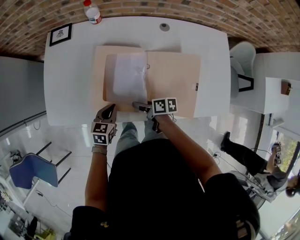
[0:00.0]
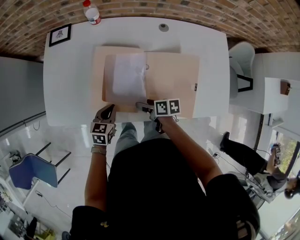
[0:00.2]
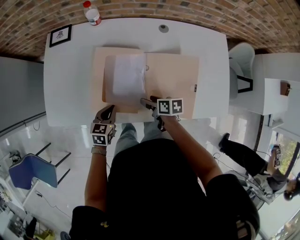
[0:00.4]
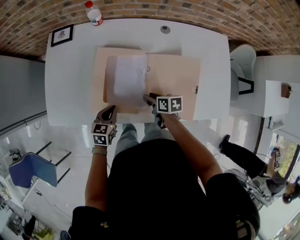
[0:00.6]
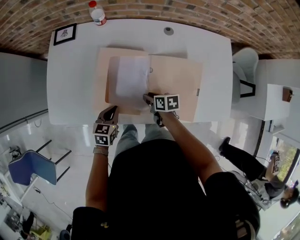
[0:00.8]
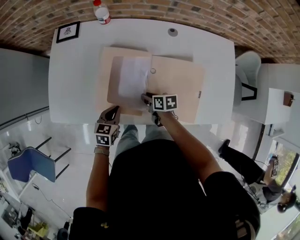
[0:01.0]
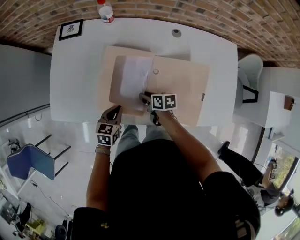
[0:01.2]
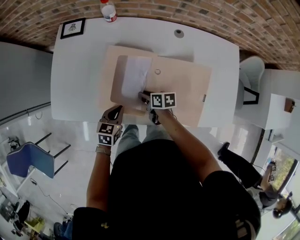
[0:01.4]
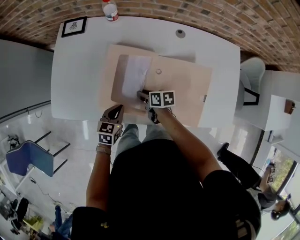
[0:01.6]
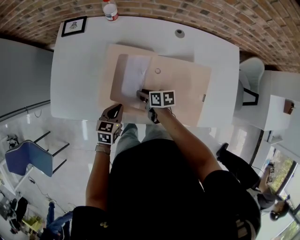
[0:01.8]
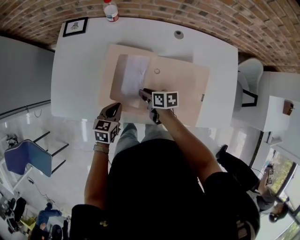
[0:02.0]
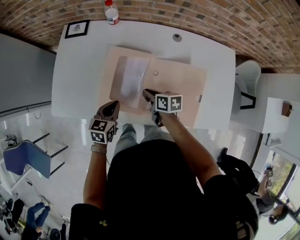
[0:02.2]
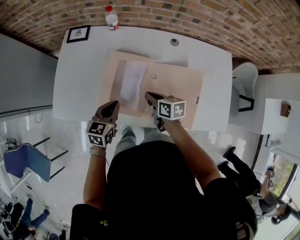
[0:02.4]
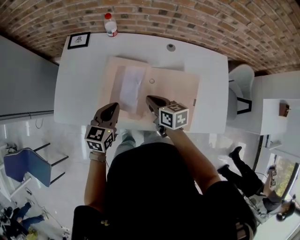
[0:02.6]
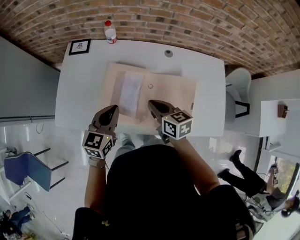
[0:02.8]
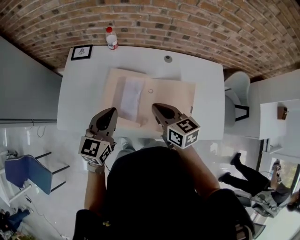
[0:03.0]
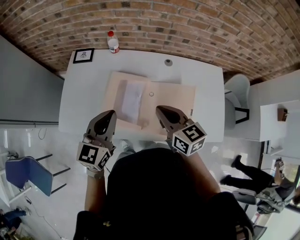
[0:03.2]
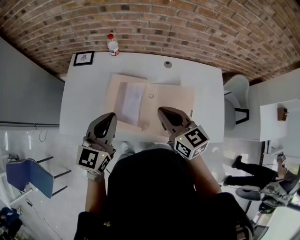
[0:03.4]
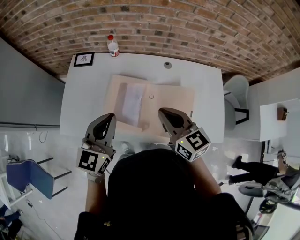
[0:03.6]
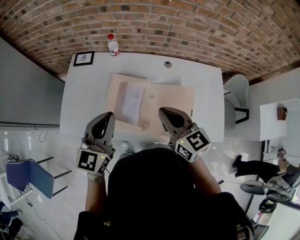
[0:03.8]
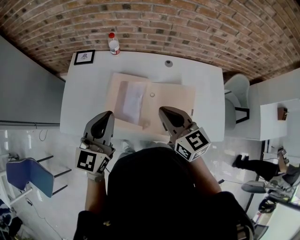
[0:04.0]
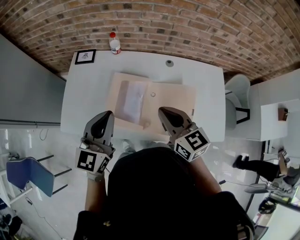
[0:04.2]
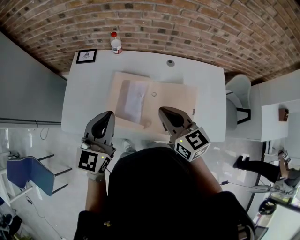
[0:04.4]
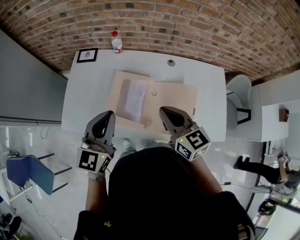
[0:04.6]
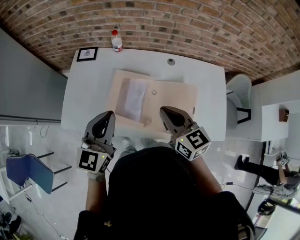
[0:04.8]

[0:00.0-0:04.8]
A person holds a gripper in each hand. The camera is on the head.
0:00.0 to 0:01.6: The right gripper goes approximately 10 cm forward, and closes its fingers.
0:01.6 to 0:03.2: The two grippers go approximately 30 cm upward. The left gripper points its fingers roughly 30 degrees further upward; the right gripper swivels about 50 degrees, and closes up.
0:03.2 to 0:04.8: The grippers move only a little.

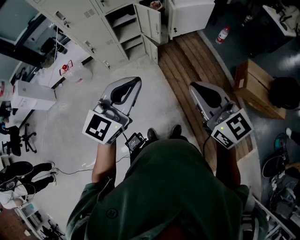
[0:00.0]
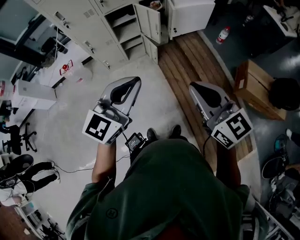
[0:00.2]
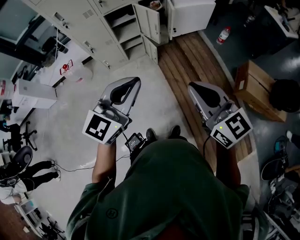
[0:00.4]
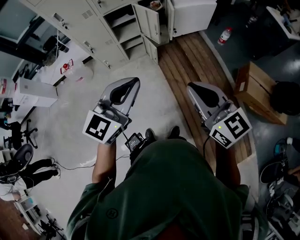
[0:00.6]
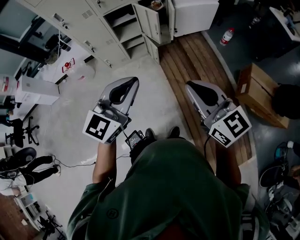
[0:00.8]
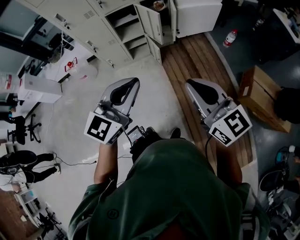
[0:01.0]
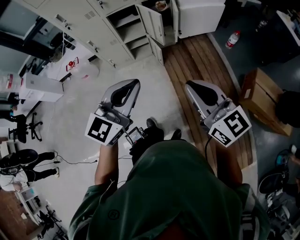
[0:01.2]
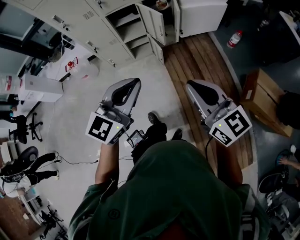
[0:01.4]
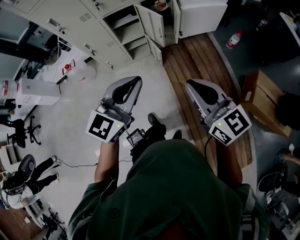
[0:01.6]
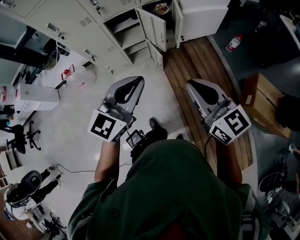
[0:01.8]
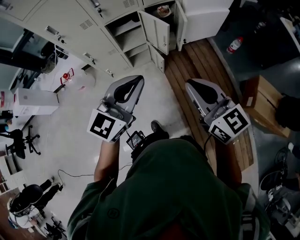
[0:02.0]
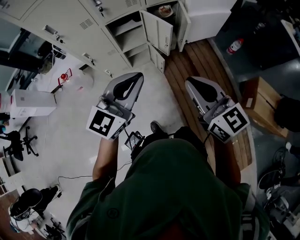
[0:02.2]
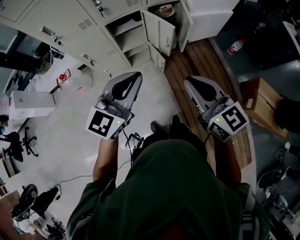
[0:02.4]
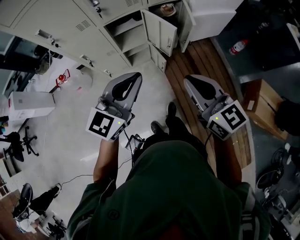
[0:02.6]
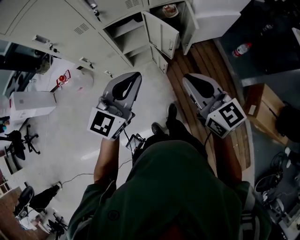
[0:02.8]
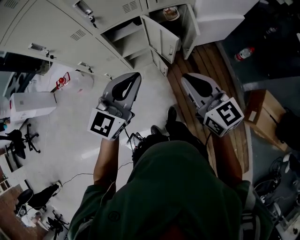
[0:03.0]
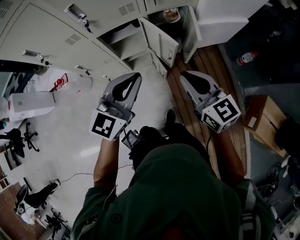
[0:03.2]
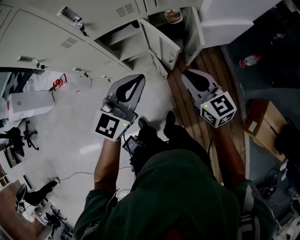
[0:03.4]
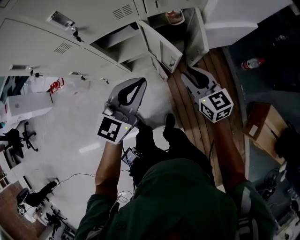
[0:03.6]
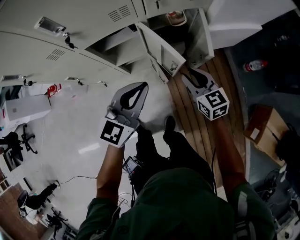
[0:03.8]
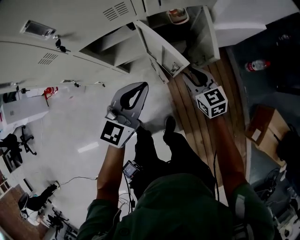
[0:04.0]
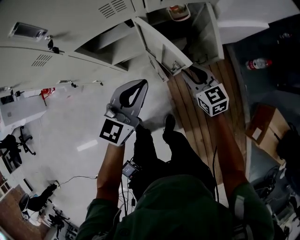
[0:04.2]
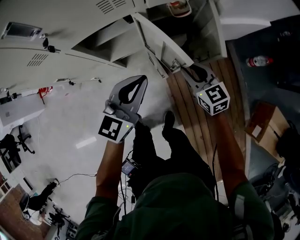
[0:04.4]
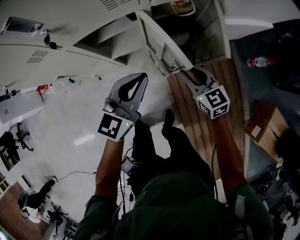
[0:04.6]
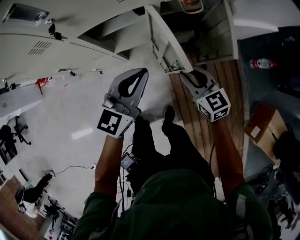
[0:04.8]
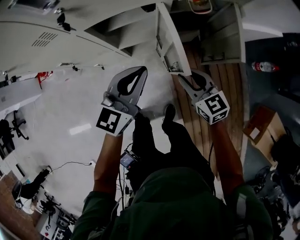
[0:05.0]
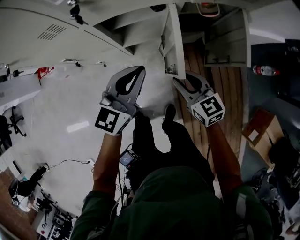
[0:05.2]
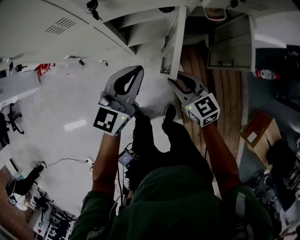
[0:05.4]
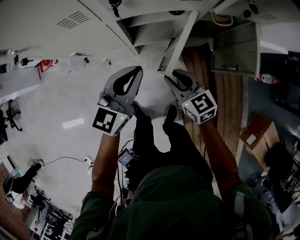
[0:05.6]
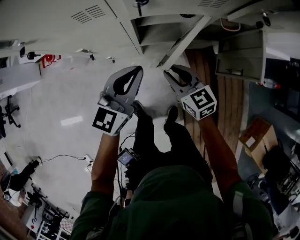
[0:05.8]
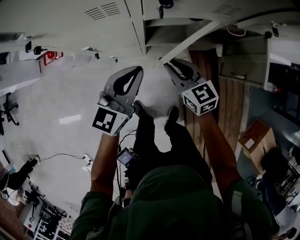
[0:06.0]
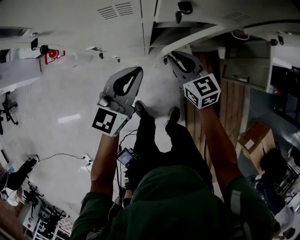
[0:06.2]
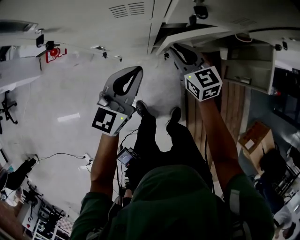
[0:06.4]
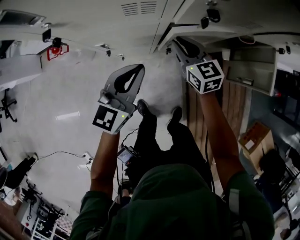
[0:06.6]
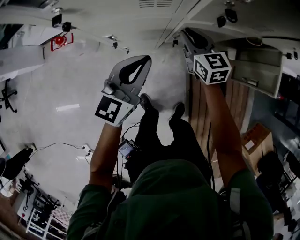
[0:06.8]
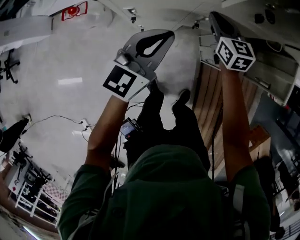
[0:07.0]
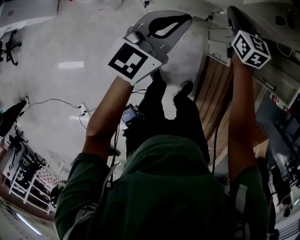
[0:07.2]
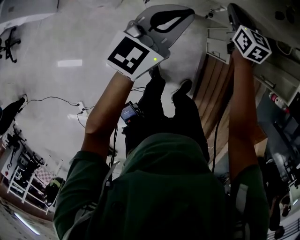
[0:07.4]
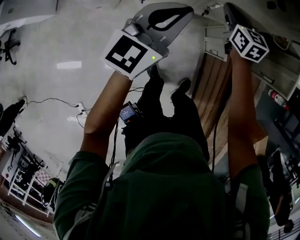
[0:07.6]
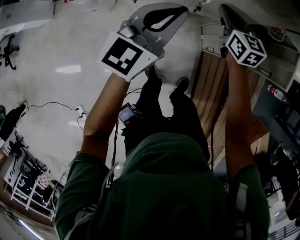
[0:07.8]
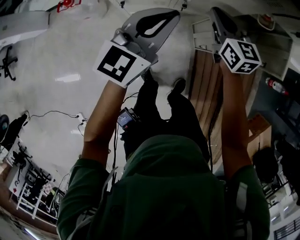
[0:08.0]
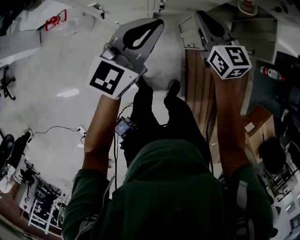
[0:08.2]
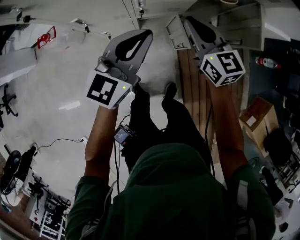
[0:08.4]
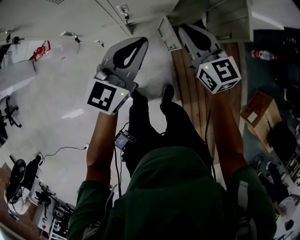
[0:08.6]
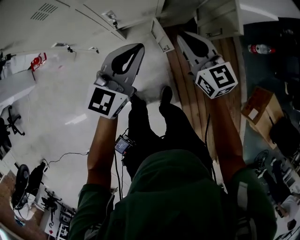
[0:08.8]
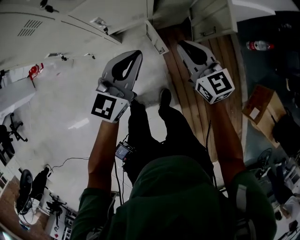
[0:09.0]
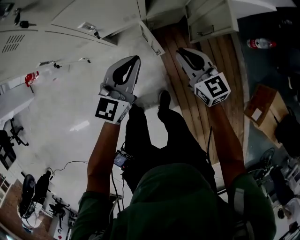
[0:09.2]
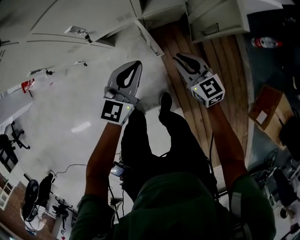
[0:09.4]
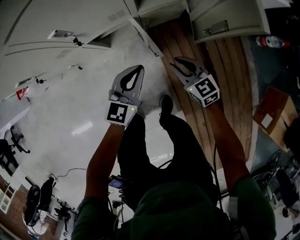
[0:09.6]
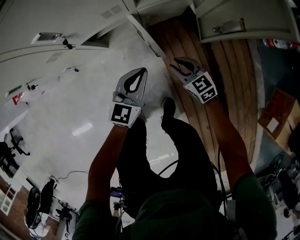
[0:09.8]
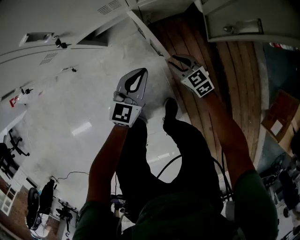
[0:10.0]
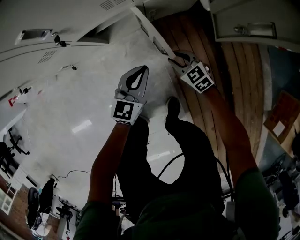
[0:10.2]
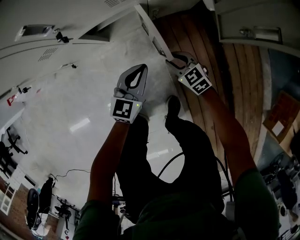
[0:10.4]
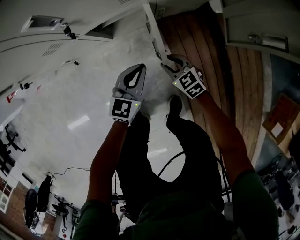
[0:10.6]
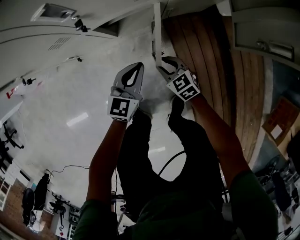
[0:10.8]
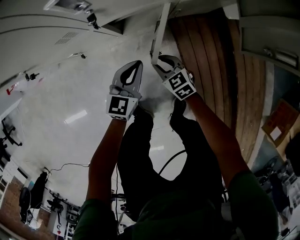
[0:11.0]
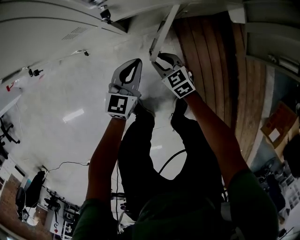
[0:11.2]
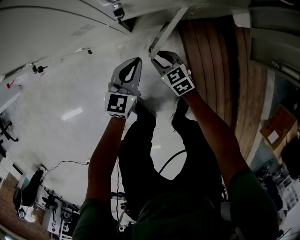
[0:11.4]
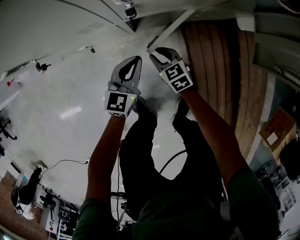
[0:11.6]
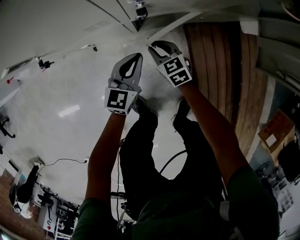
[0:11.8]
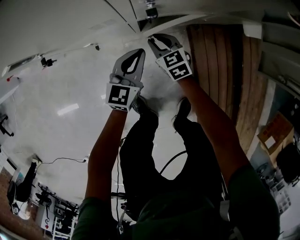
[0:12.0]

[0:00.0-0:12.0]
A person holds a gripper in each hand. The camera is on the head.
0:00.0 to 0:01.6: The left gripper goes about 15 cm forward and to the right, while the right gripper is displaced forward by some 15 cm.
0:01.6 to 0:03.0: Both grippers travel together forward, about 25 cm.
0:03.0 to 0:04.4: Both grippers move downward and forward, about 30 cm. The right gripper opens.
0:04.4 to 0:06.0: The two grippers go approximately 25 cm to the left.
0:06.0 to 0:07.6: The left gripper moves some 5 cm. The right gripper heads forward, covering about 10 cm.
0:07.6 to 0:09.0: The left gripper is displaced to the right by some 25 cm. The right gripper heads to the right and backward, covering approximately 30 cm.
0:09.0 to 0:10.4: The grippers both shift downward by approximately 40 cm. The right gripper turns by roughly 30 degrees.
0:10.4 to 0:12.0: The grippers both shift to the left and forward by some 25 cm.

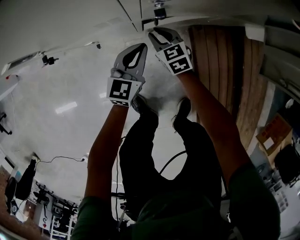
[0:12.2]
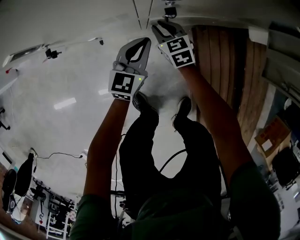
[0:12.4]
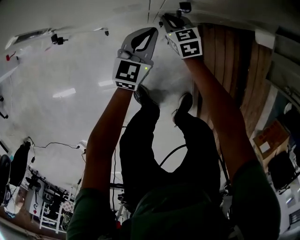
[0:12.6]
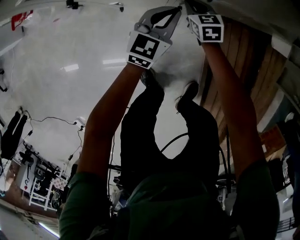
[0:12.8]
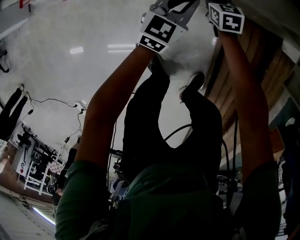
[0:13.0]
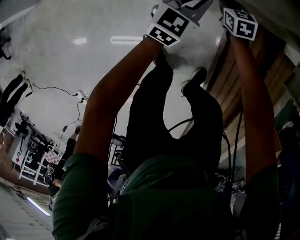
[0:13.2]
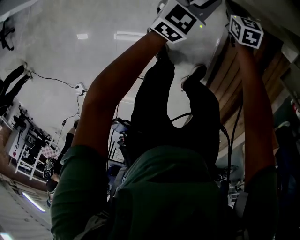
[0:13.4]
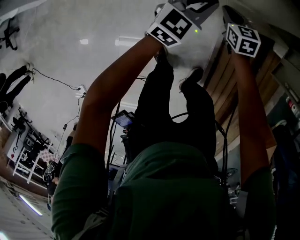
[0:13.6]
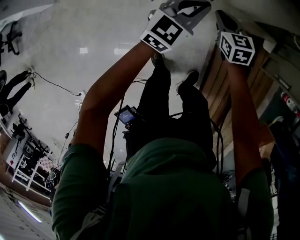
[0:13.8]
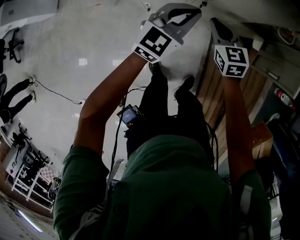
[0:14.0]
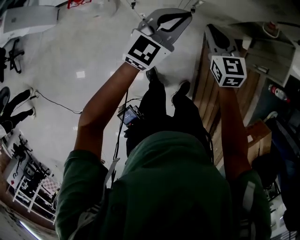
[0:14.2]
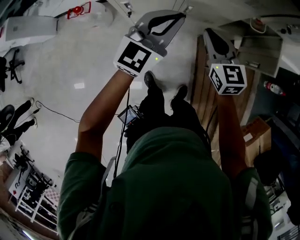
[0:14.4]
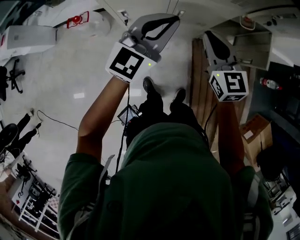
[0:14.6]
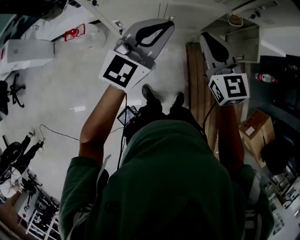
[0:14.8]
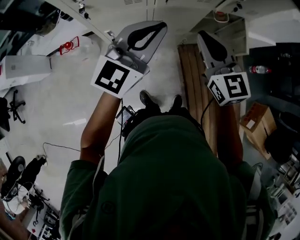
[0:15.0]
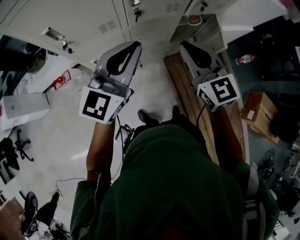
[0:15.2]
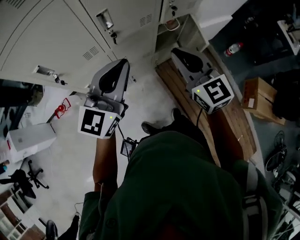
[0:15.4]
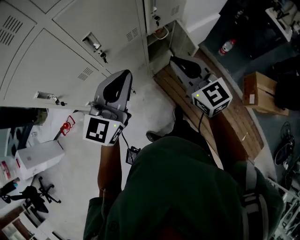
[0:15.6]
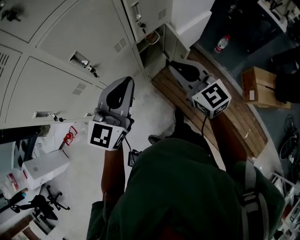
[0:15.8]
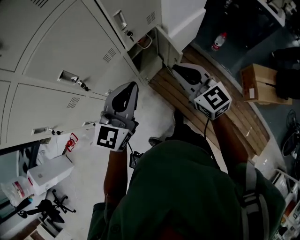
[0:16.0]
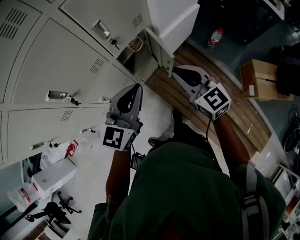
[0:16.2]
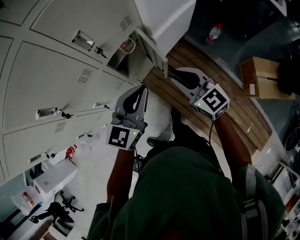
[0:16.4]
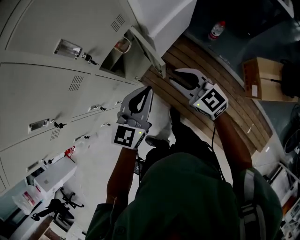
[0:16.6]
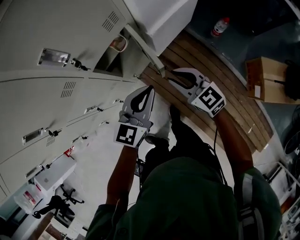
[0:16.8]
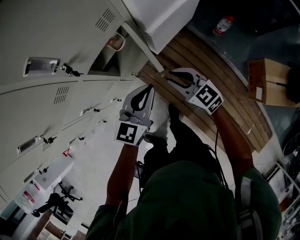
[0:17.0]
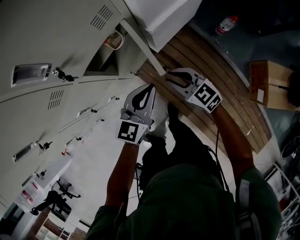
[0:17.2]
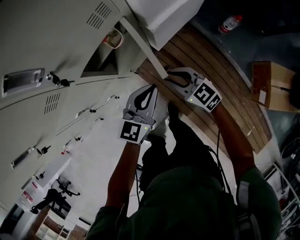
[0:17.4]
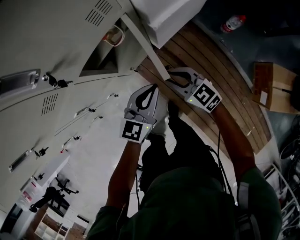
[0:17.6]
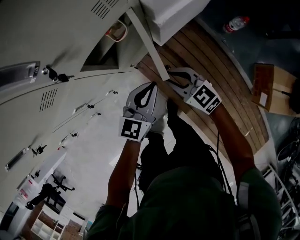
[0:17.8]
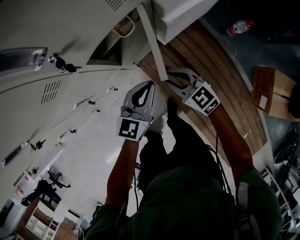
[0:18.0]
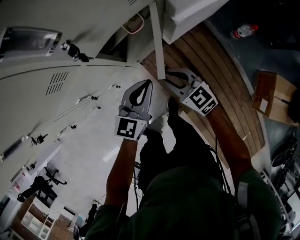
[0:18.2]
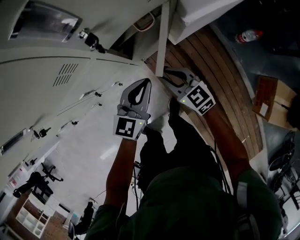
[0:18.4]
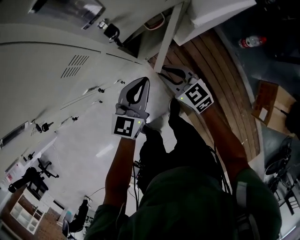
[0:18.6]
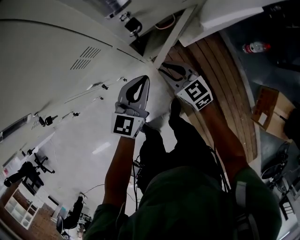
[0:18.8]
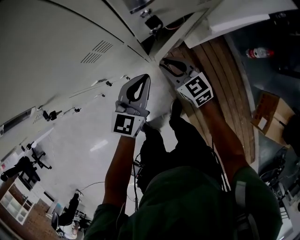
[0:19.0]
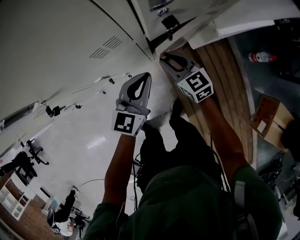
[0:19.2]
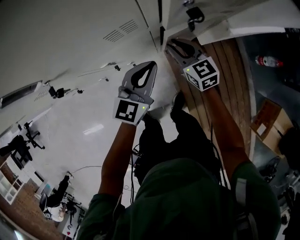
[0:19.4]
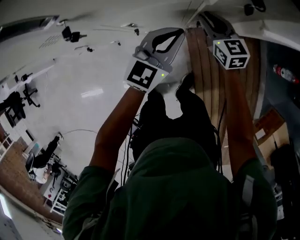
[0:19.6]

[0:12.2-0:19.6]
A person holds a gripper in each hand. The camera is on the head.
0:12.2 to 0:13.6: Both grippers move upward, some 20 cm.
0:13.6 to 0:15.2: Both grippers move upward, about 50 cm. The right gripper tips its fingers upward by about 30 degrees. Meanwhile the left gripper swivels about 30 degrees.
0:15.2 to 0:16.6: The left gripper moves to the right, forward and downward, some 40 cm, and turns by some 30 degrees. The right gripper is displaced to the right, downward and forward by roughly 40 cm.
0:16.6 to 0:18.2: The left gripper shifts about 20 cm downward and forward. The right gripper travels downward and to the left by about 20 cm.
0:18.2 to 0:19.6: The right gripper shifts approximately 20 cm forward and to the left. Meanwhile the left gripper travels to the left by approximately 15 cm.
